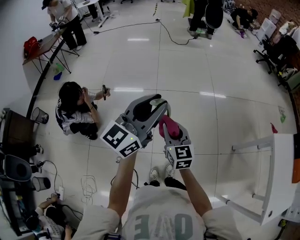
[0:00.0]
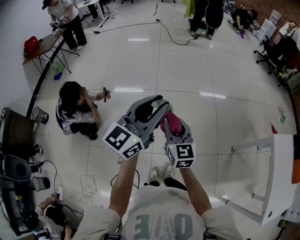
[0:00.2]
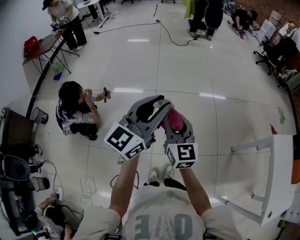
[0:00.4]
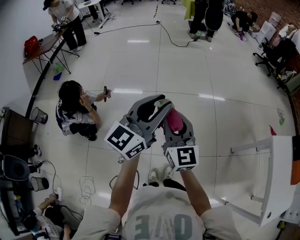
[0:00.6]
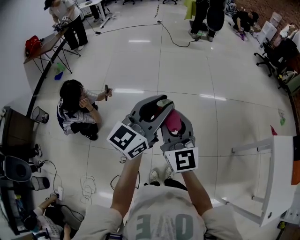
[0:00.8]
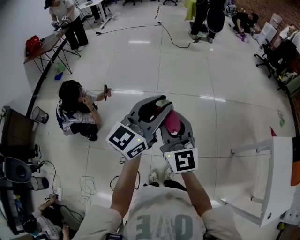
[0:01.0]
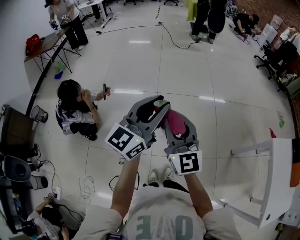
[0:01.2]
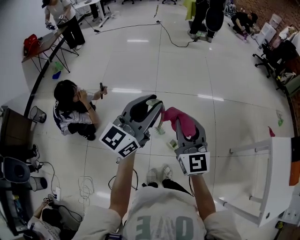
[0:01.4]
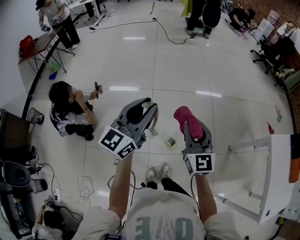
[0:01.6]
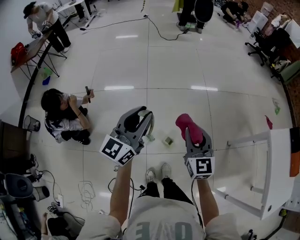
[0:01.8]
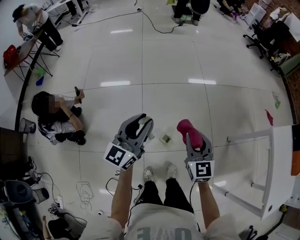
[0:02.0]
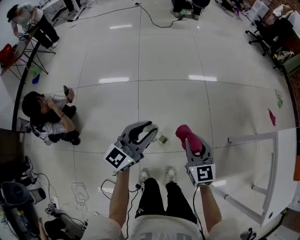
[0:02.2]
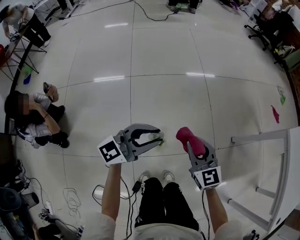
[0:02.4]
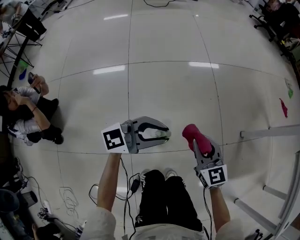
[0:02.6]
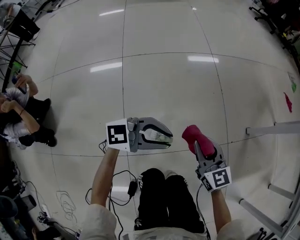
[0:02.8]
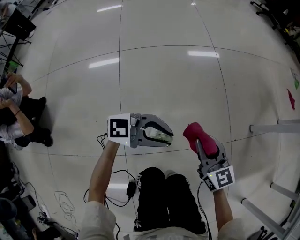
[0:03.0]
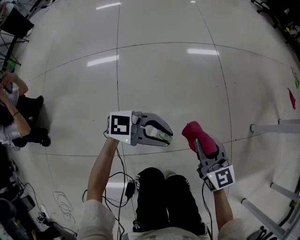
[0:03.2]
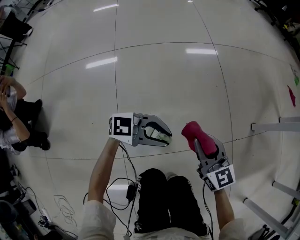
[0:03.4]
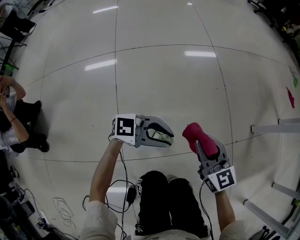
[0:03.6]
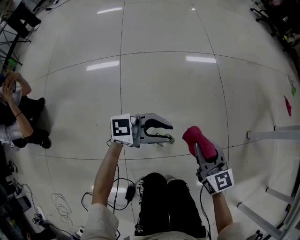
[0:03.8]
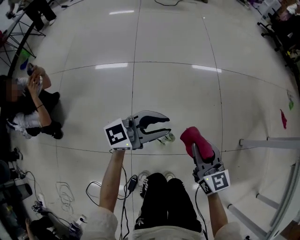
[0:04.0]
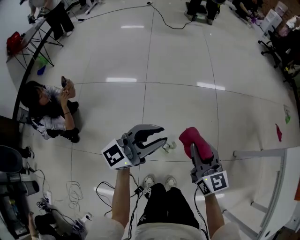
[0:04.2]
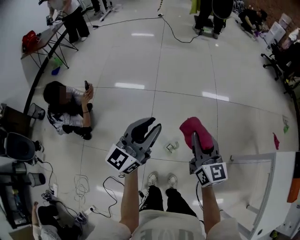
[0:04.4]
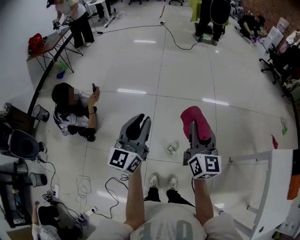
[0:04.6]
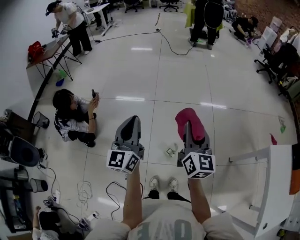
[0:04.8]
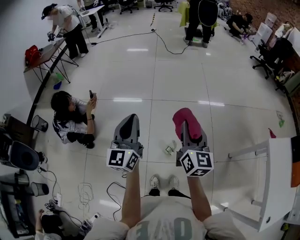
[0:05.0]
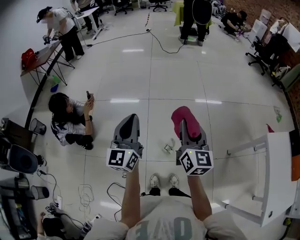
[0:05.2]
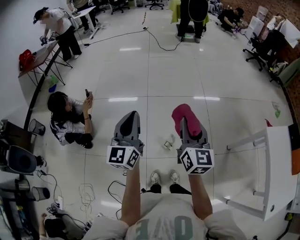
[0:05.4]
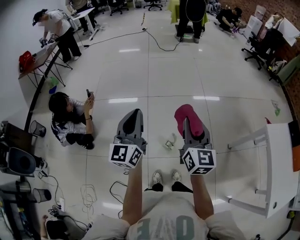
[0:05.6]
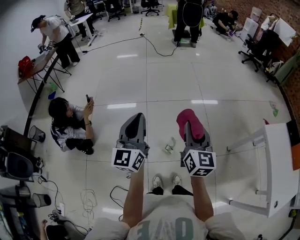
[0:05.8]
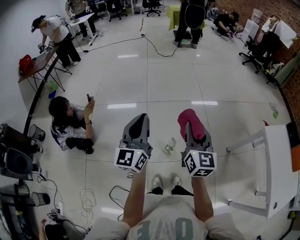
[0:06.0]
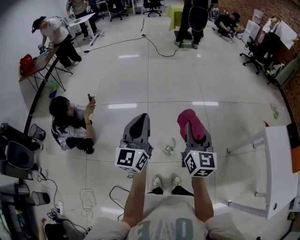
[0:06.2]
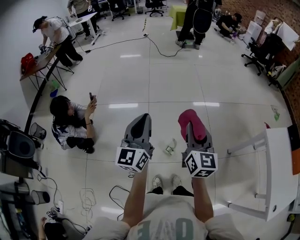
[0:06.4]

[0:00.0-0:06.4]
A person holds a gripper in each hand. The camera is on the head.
0:00.0 to 0:01.6: The right gripper travels upward and to the right by about 10 cm; the left gripper changes place by about 5 cm.
0:01.6 to 0:03.2: The two grippers go about 60 cm downward. The left gripper changes its angle by approximately 80 degrees; the right gripper turns by approximately 20 degrees.
0:03.2 to 0:04.8: The grippers both shift upward by about 60 cm. The left gripper rotates approximately 100 degrees; the right gripper swivels roughly 20 degrees.
0:04.8 to 0:06.4: The right gripper moves backward, roughly 5 cm; the left gripper shifts by roughly 5 cm.

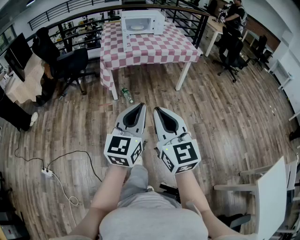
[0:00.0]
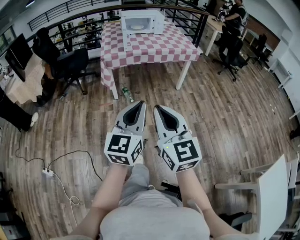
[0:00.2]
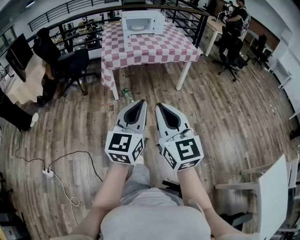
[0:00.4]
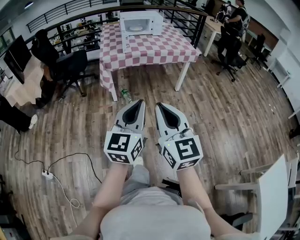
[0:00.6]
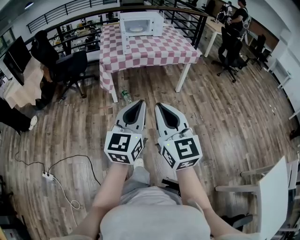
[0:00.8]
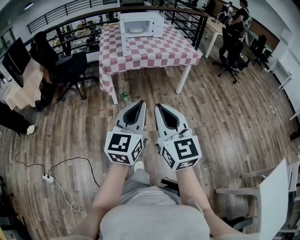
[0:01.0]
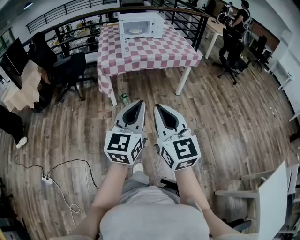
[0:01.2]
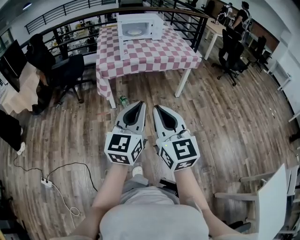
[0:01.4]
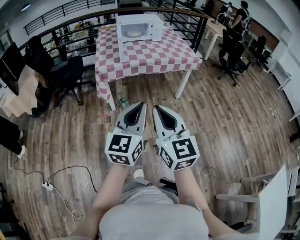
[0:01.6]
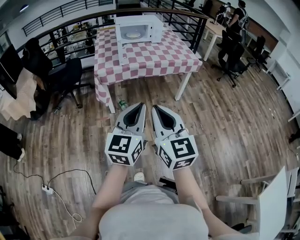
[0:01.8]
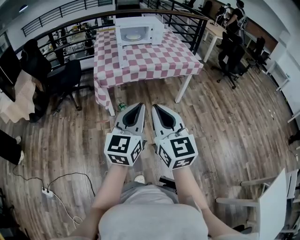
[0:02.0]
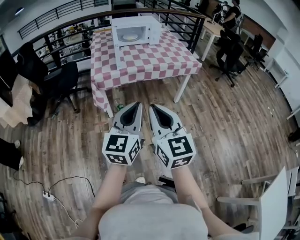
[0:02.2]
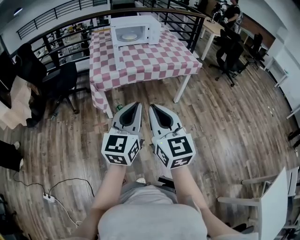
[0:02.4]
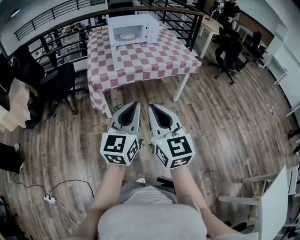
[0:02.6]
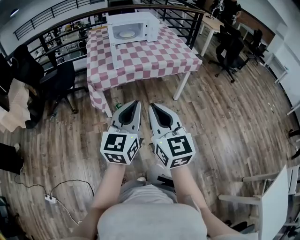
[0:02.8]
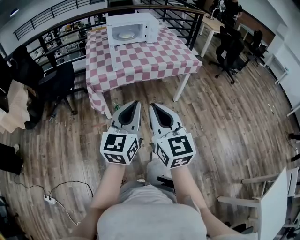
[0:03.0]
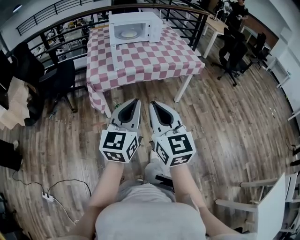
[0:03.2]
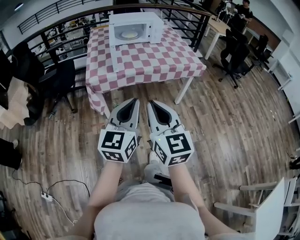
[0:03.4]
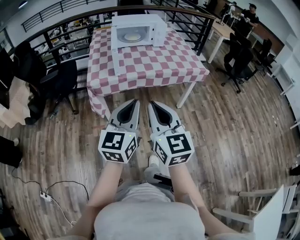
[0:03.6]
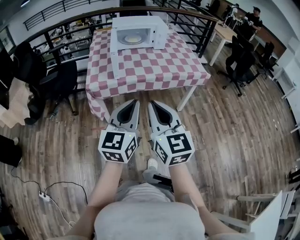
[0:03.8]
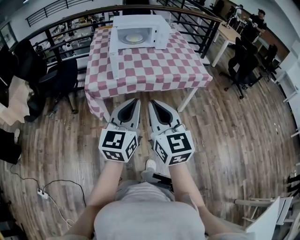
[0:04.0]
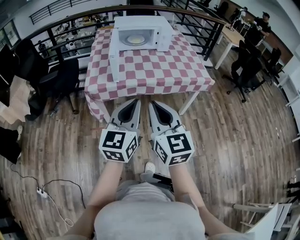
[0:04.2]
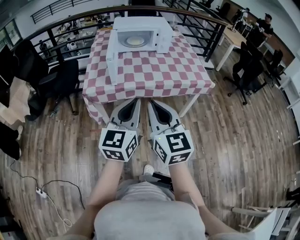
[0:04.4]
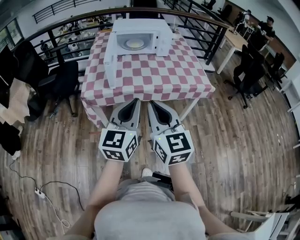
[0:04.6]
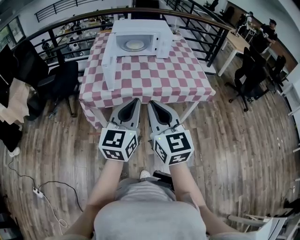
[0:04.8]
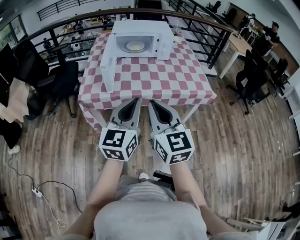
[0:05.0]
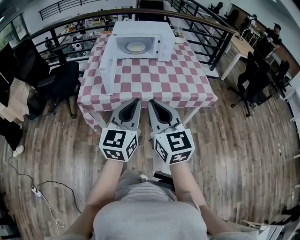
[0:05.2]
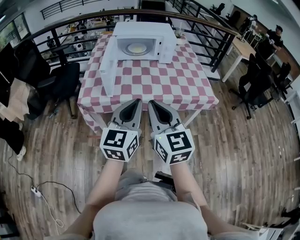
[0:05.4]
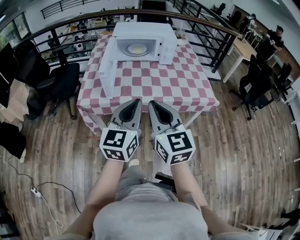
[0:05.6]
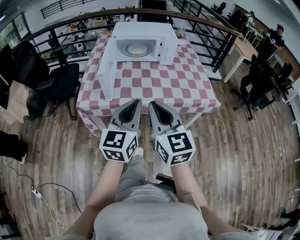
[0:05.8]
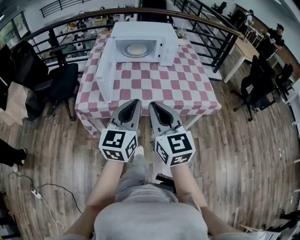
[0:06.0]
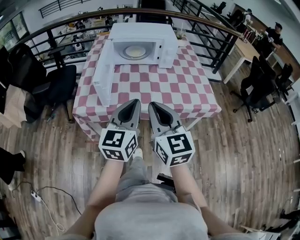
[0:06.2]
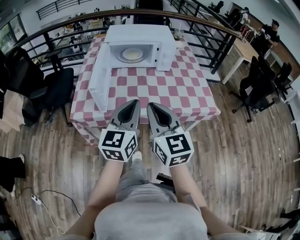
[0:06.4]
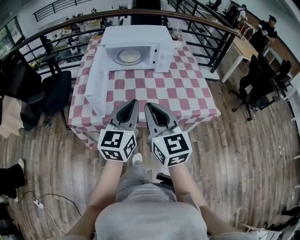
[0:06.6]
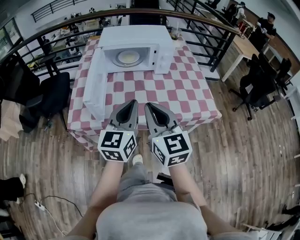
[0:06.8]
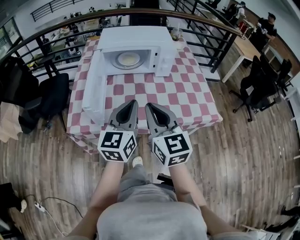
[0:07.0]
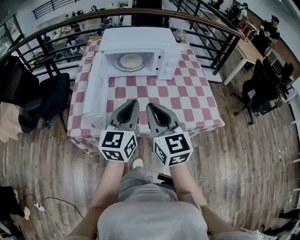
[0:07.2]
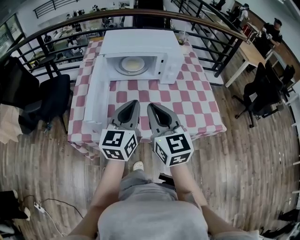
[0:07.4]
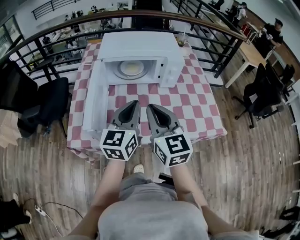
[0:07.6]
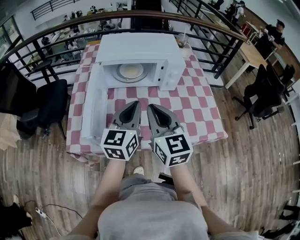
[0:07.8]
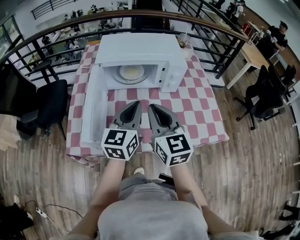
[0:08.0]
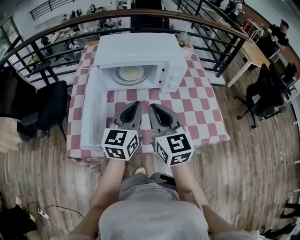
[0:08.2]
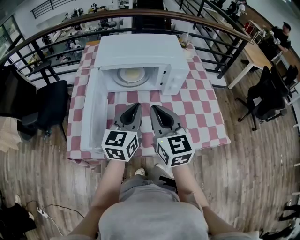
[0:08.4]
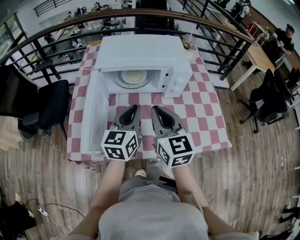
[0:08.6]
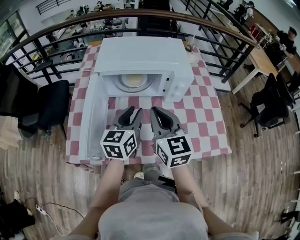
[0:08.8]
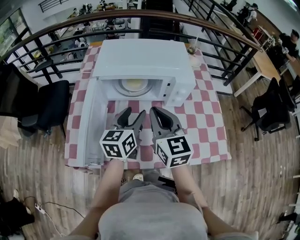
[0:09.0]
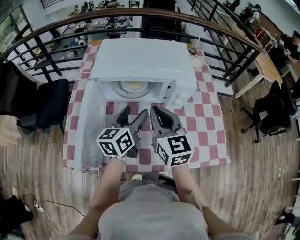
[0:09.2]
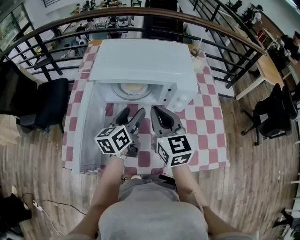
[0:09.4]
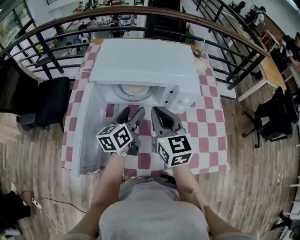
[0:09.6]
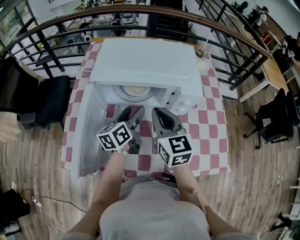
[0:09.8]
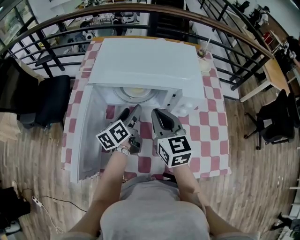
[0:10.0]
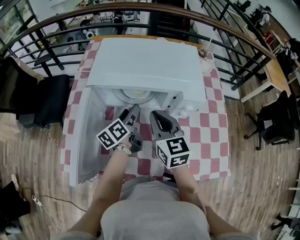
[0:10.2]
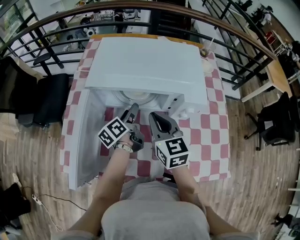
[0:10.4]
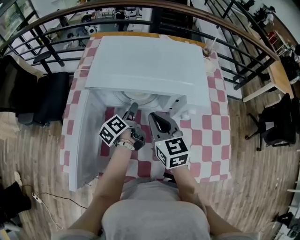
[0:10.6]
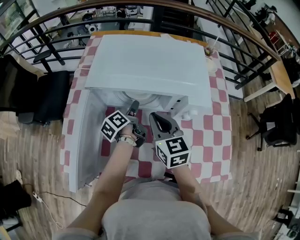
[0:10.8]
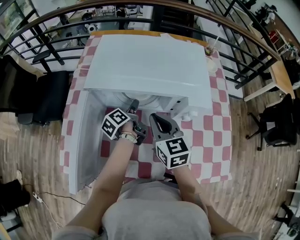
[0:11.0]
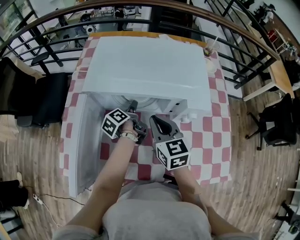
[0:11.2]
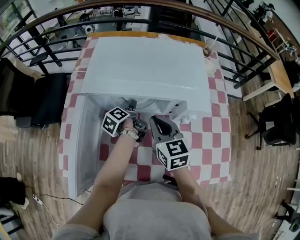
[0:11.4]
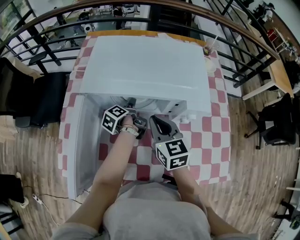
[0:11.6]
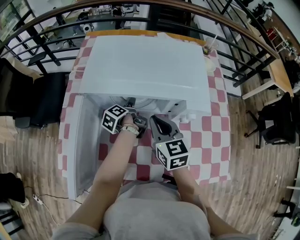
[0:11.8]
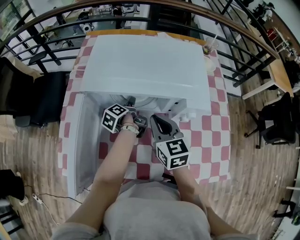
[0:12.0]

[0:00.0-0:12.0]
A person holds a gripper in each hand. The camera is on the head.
0:00.0 to 0:01.6: Both grippers move forward, about 15 cm.
0:01.6 to 0:03.0: The two grippers go roughly 15 cm forward.
0:03.0 to 0:04.4: The two grippers go about 20 cm forward.
0:04.4 to 0:06.0: The grippers both shift forward by some 15 cm.
0:06.0 to 0:07.6: Both grippers move forward, some 25 cm.
0:07.6 to 0:09.0: The left gripper is displaced forward and downward by approximately 15 cm, and opens. Meanwhile the right gripper heads forward, covering about 15 cm.
0:09.0 to 0:10.4: The grippers both shift forward and downward by roughly 15 cm. The left gripper twists roughly 40 degrees counterclockwise, seen from behind.
0:10.4 to 0:12.0: The left gripper goes roughly 10 cm downward and forward, and swivels approximately 30 degrees.

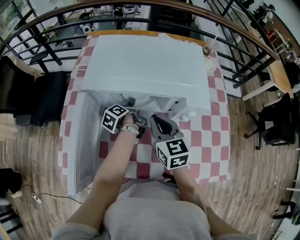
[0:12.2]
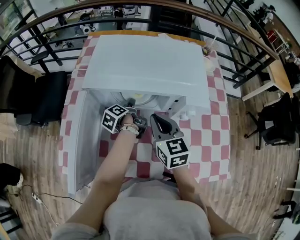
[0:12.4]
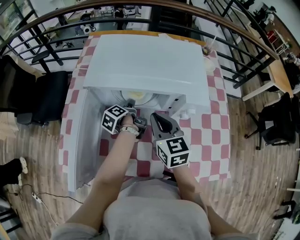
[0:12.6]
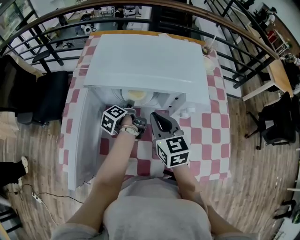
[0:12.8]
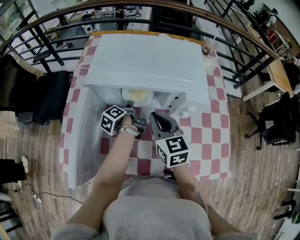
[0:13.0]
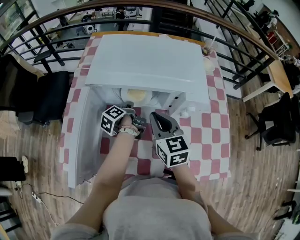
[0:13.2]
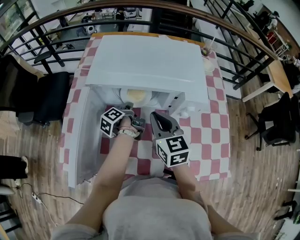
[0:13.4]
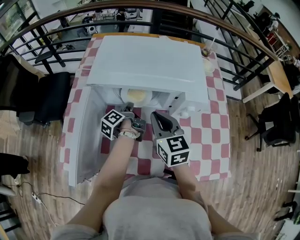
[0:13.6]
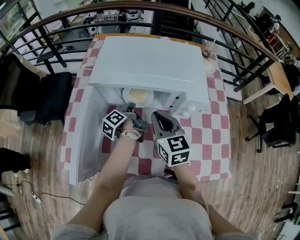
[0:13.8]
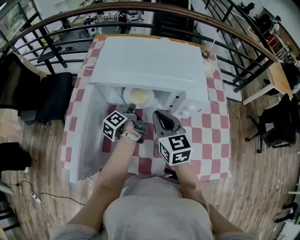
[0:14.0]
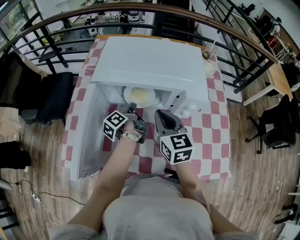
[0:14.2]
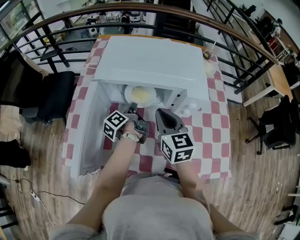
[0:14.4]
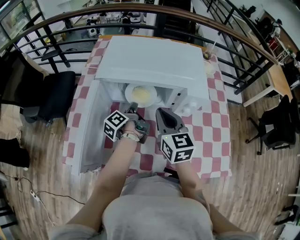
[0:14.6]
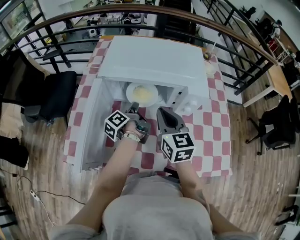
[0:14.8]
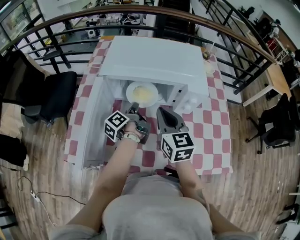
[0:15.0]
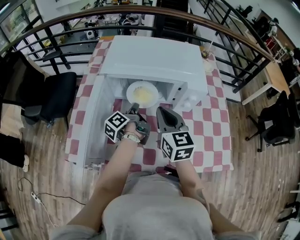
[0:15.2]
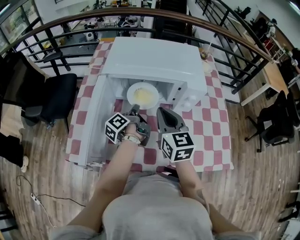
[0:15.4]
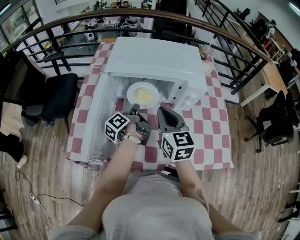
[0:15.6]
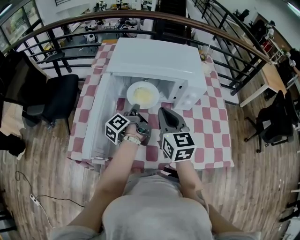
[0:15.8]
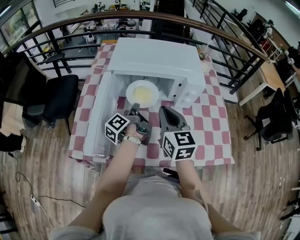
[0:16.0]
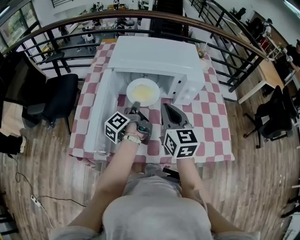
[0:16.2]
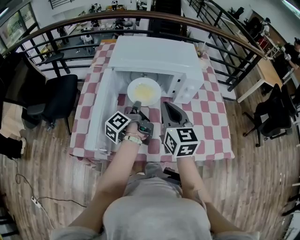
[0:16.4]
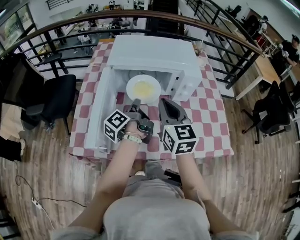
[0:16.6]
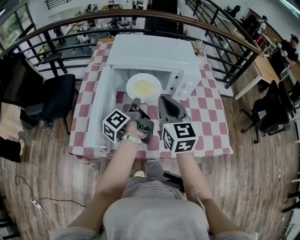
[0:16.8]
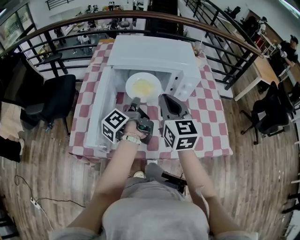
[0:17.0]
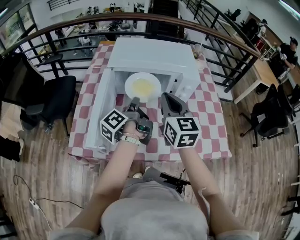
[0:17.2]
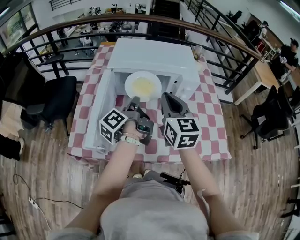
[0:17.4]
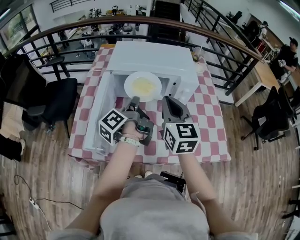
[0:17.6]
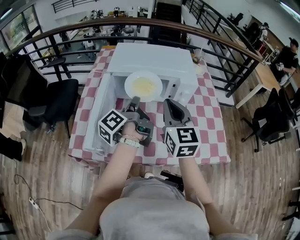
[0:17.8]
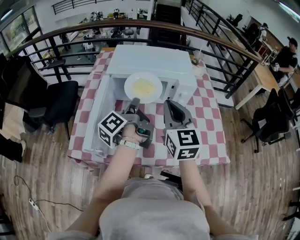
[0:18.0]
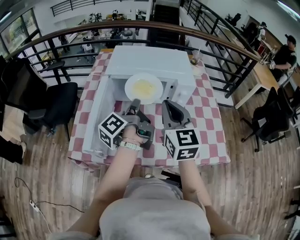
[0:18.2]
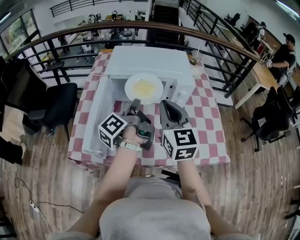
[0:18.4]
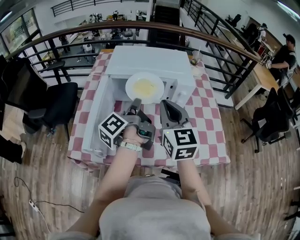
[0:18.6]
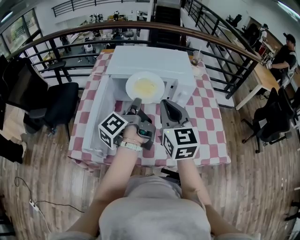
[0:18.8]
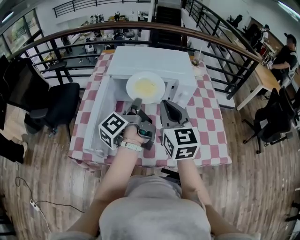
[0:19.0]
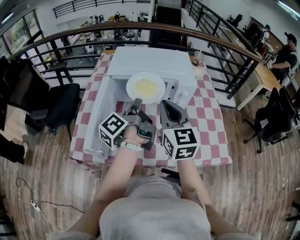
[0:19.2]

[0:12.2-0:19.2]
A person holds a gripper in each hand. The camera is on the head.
0:12.2 to 0:13.6: The left gripper closes up.
0:13.6 to 0:15.0: The left gripper is displaced backward by about 5 cm.
0:15.0 to 0:16.4: The right gripper heads backward, covering some 5 cm. Meanwhile the left gripper shifts approximately 10 cm backward and upward.
0:16.4 to 0:17.8: The left gripper goes approximately 10 cm upward, while the right gripper heads upward, covering roughly 5 cm.
0:17.8 to 0:19.2: There are only small adjustments of the grippers.
